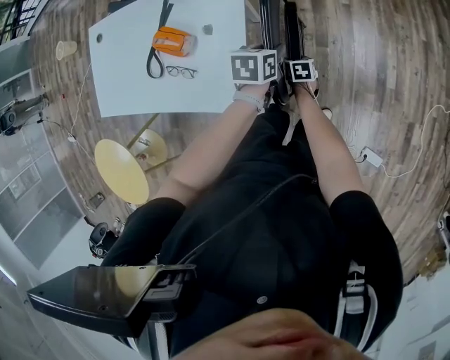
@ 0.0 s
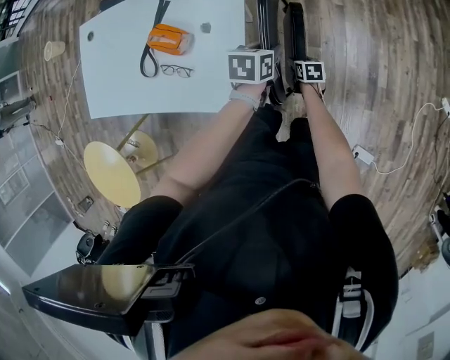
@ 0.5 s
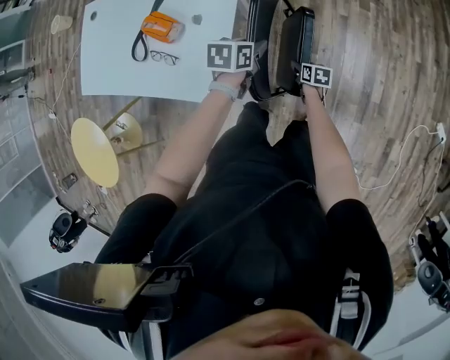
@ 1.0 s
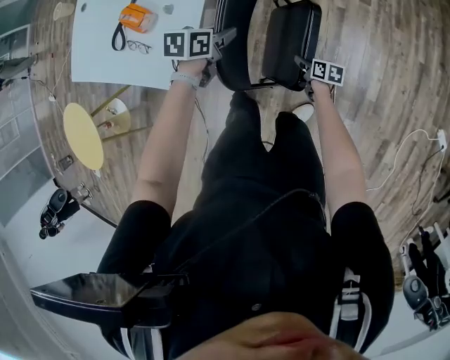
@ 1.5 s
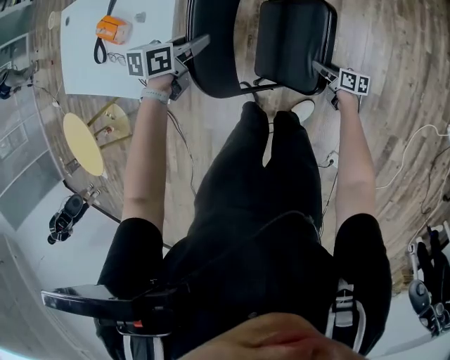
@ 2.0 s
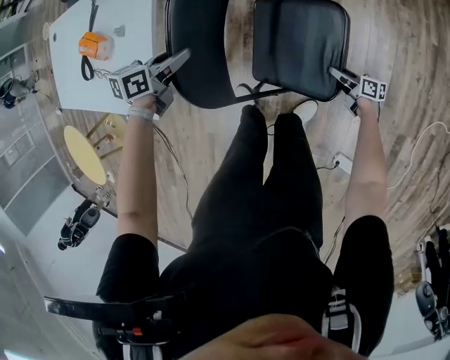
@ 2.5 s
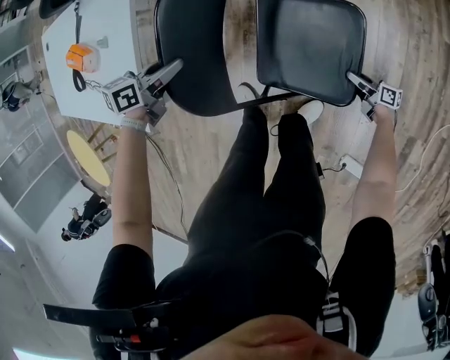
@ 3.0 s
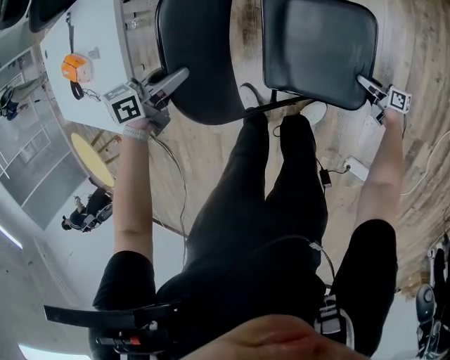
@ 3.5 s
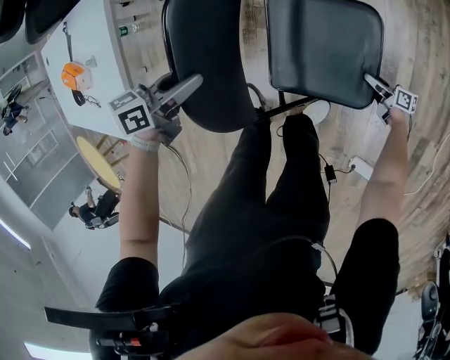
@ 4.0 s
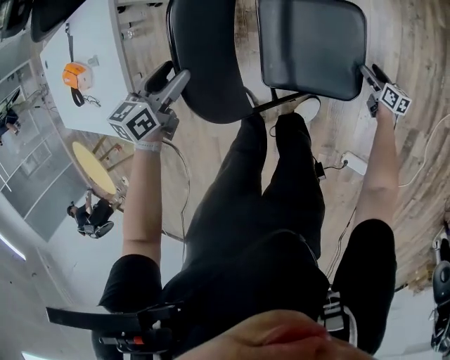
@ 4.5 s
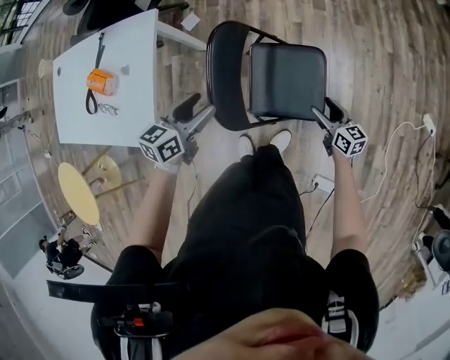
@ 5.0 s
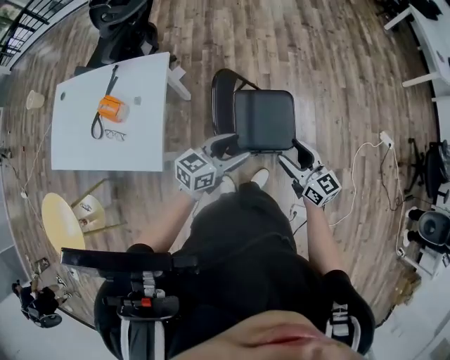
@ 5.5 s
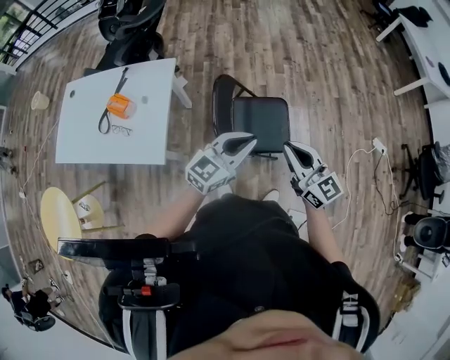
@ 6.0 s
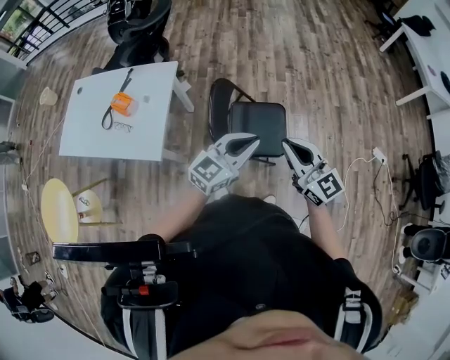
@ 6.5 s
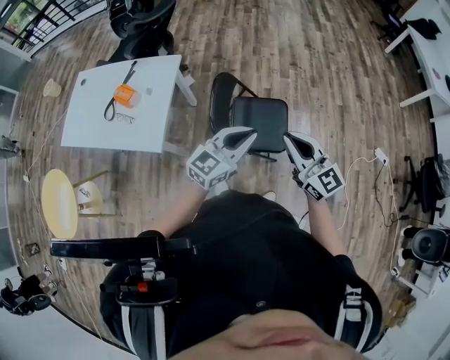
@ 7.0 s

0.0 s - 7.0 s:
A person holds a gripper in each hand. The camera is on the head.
0.0 s - 2.0 s: The left gripper shifts approximately 5 cm downward. Meanwhile the right gripper is displaced to the right by some 35 cm, and turns by about 30 degrees.
2.0 s - 3.5 s: The left gripper travels downward by approximately 10 cm. The right gripper heads downward and to the right, covering about 25 cm, and changes its angle by approximately 20 degrees.
3.5 s - 5.0 s: The left gripper goes roughly 15 cm upward, rotates about 20 degrees, and opens its fingers. The right gripper goes about 35 cm upward, and rolls counterclockwise, seen from behind, by about 40 degrees.
5.0 s - 7.0 s: The right gripper heads upward and backward, covering some 50 cm, turns by some 40 degrees, and closes up; the left gripper is displaced upward, to the right and backward by approximately 35 cm, turns by approximately 40 degrees, and closes.

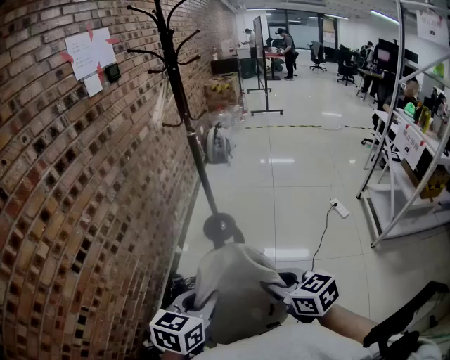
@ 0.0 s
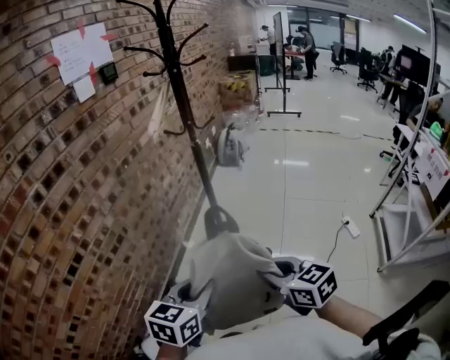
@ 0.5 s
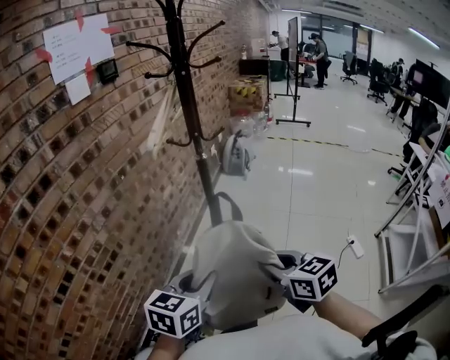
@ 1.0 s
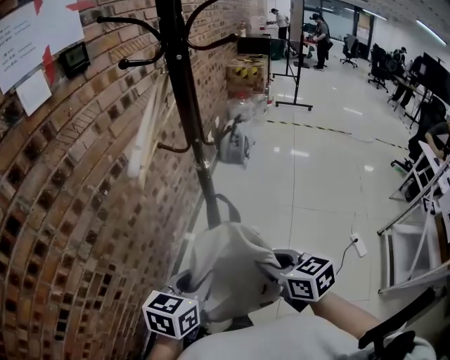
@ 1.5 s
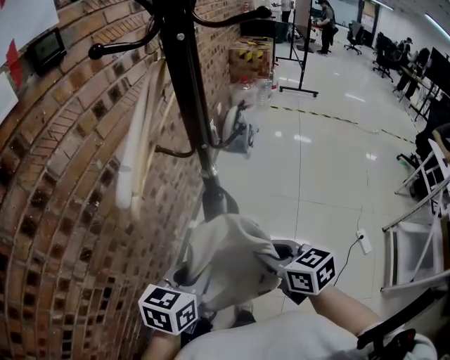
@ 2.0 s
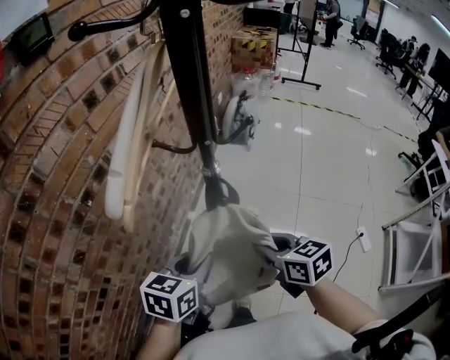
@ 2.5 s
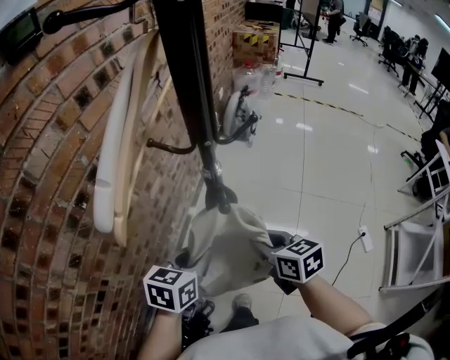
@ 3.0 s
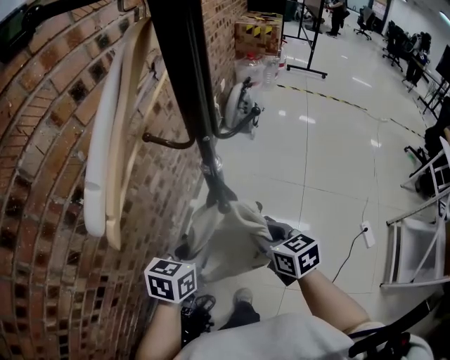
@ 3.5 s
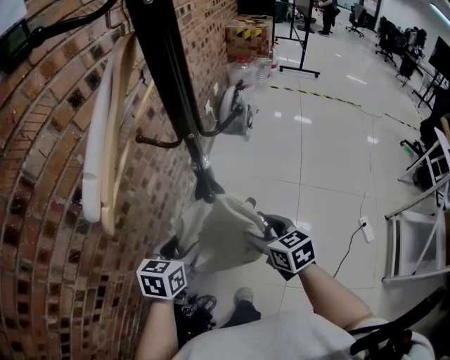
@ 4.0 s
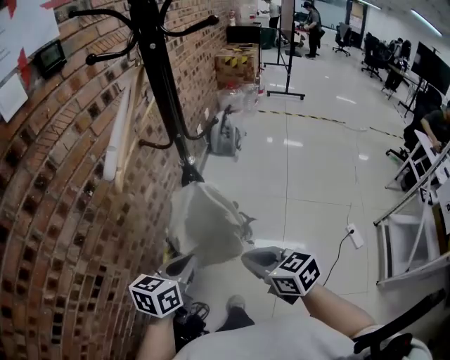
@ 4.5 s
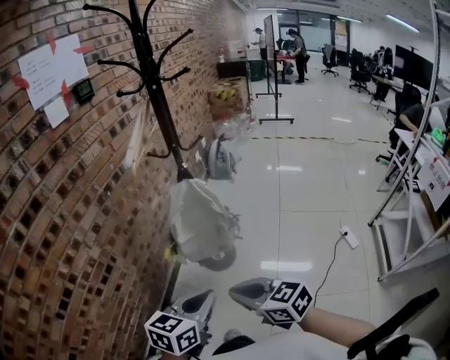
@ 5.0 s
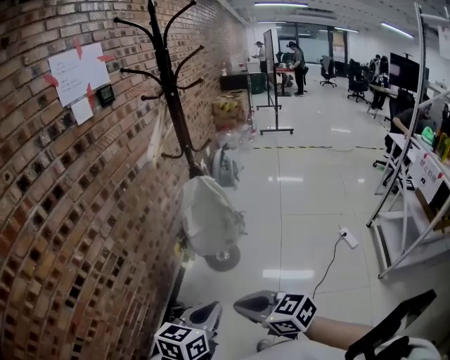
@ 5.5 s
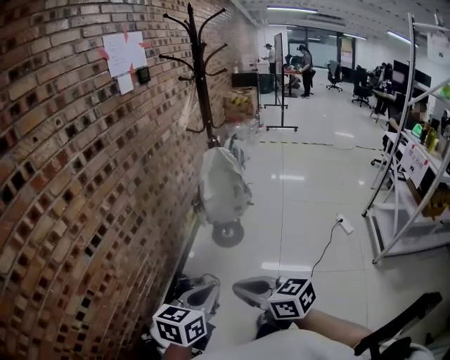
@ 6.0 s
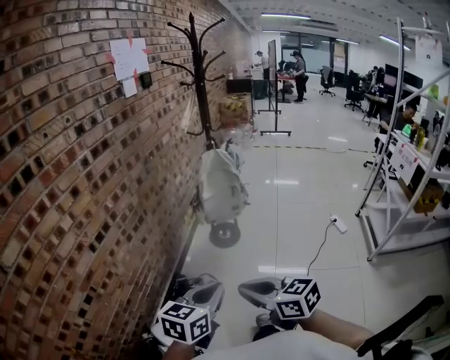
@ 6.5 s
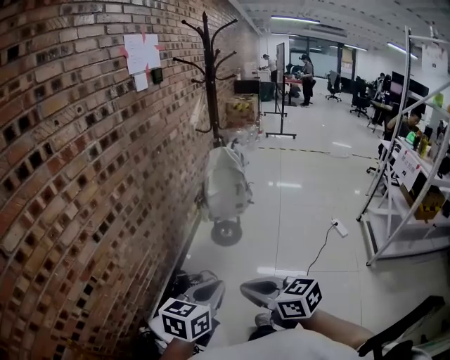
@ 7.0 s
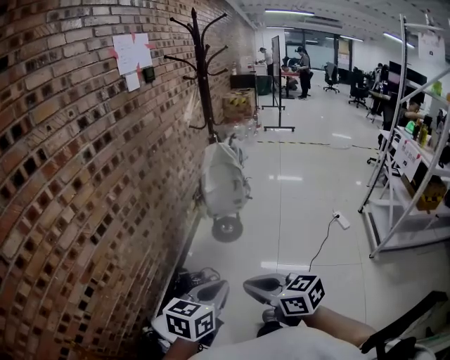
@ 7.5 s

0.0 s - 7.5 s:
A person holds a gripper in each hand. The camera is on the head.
0.0 s - 2.0 s: The pair of grippers is taken forward, about 60 cm.
2.0 s - 4.0 s: The grippers both shift downward and forward by some 15 cm. The right gripper opens, while the left gripper opens.
4.0 s - 5.5 s: The pair of grippers is taken backward, about 50 cm. The right gripper changes its angle by about 20 degrees, and closes up, while the left gripper closes its fingers.
5.5 s - 7.5 s: The two grippers go about 25 cm backward and to the left.

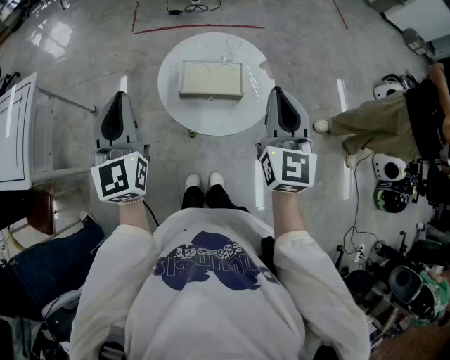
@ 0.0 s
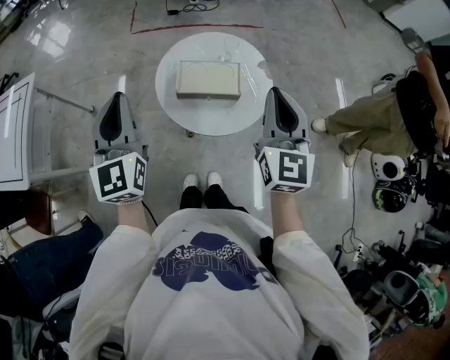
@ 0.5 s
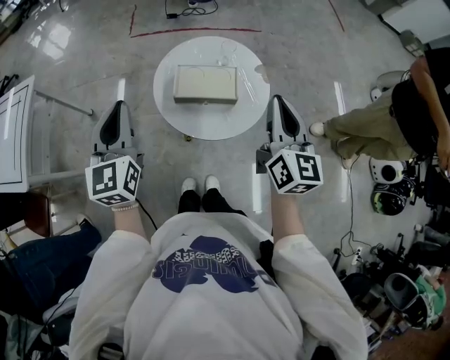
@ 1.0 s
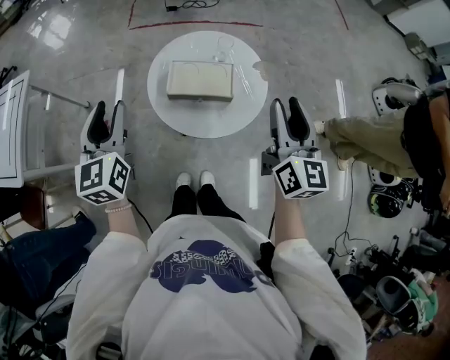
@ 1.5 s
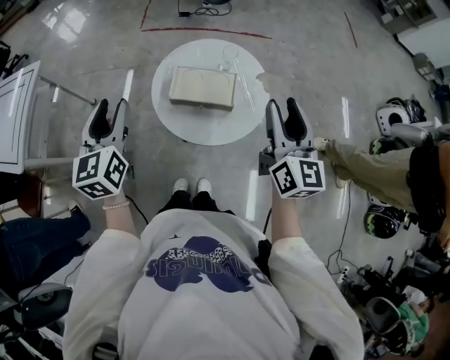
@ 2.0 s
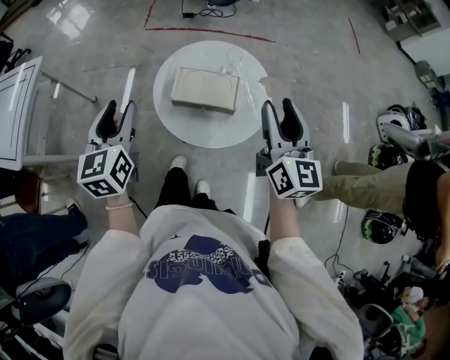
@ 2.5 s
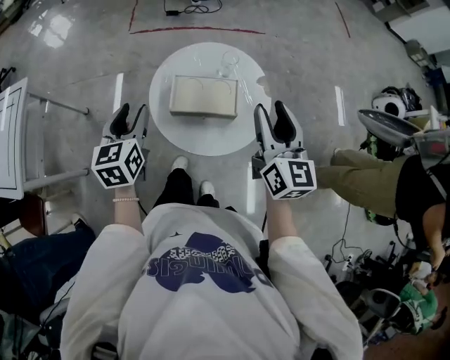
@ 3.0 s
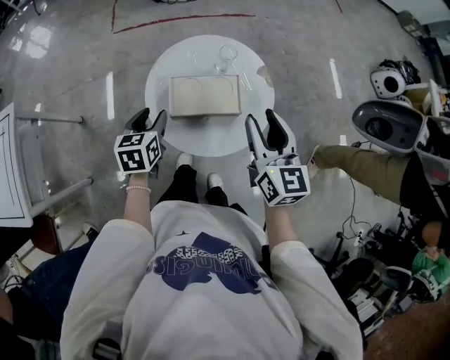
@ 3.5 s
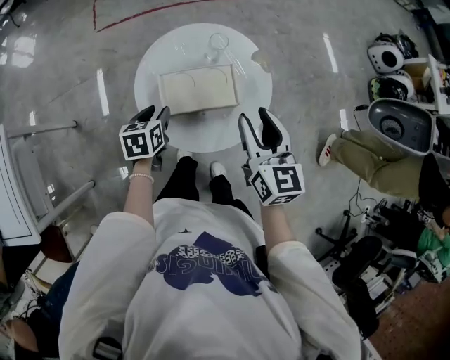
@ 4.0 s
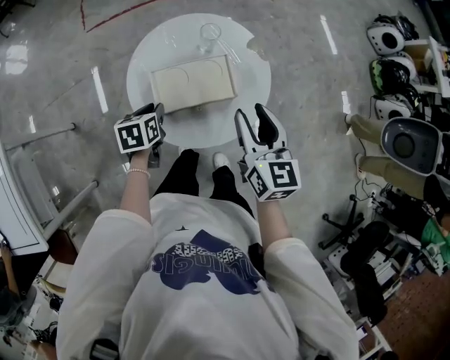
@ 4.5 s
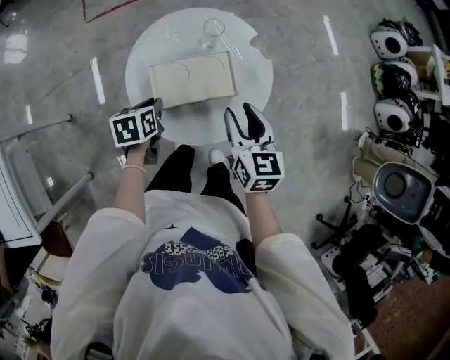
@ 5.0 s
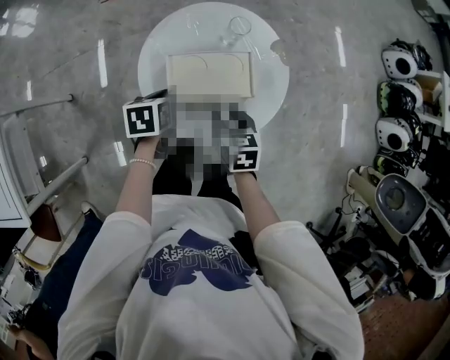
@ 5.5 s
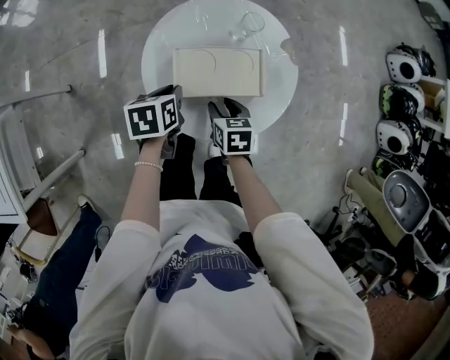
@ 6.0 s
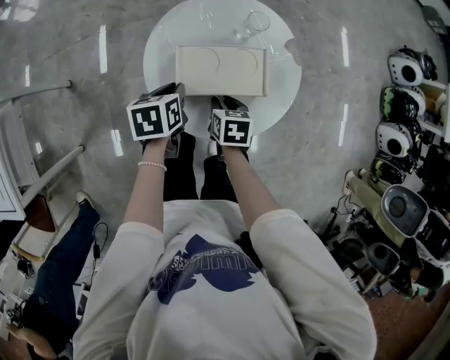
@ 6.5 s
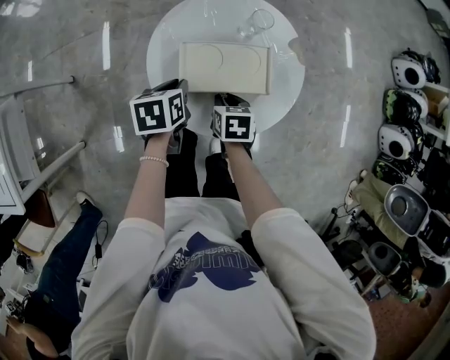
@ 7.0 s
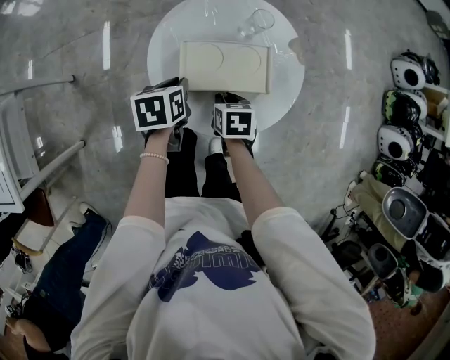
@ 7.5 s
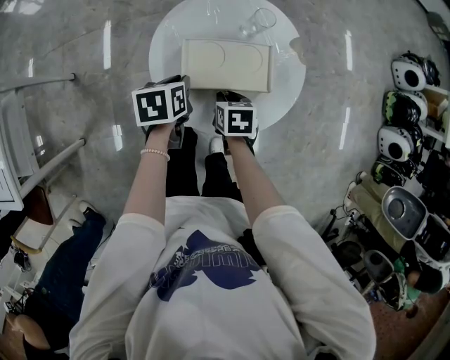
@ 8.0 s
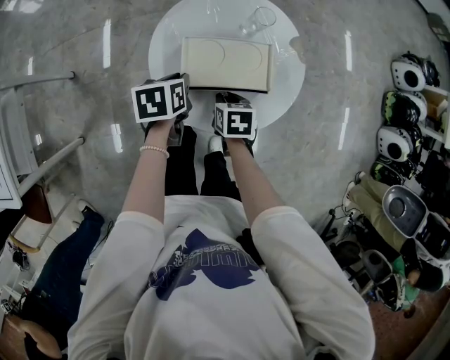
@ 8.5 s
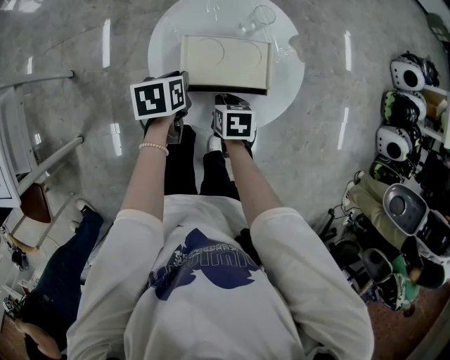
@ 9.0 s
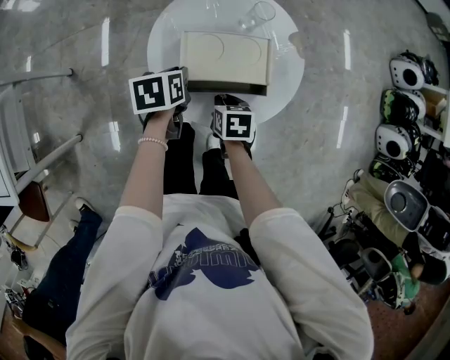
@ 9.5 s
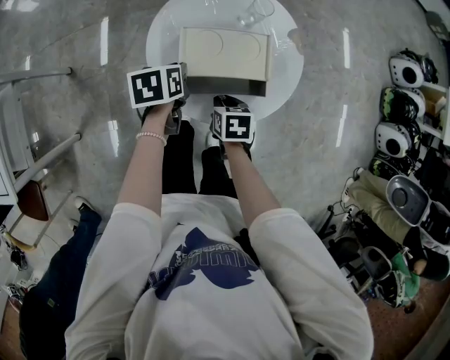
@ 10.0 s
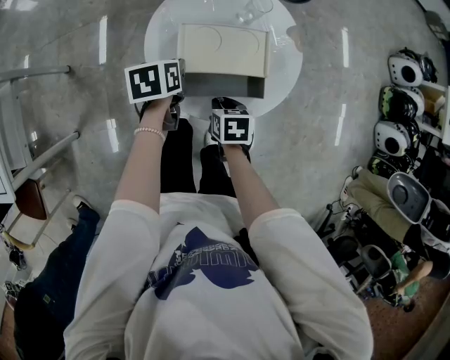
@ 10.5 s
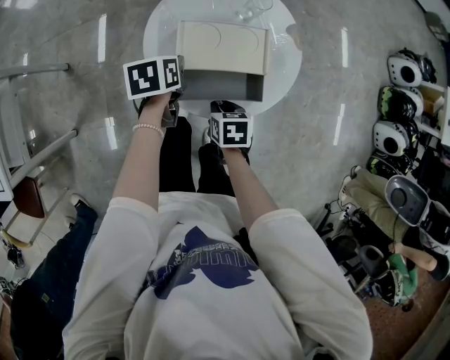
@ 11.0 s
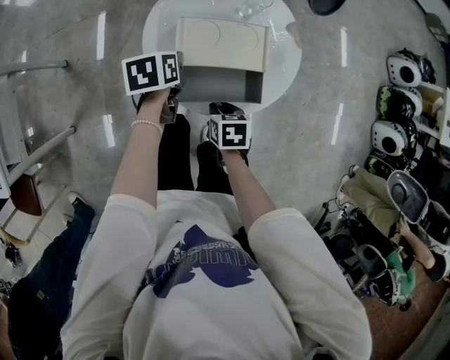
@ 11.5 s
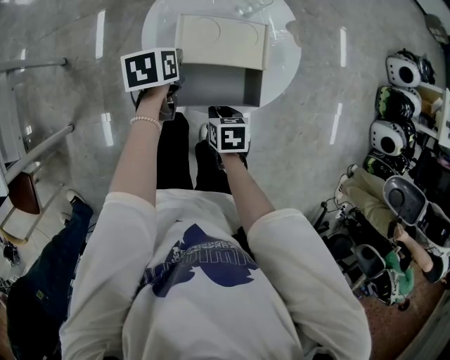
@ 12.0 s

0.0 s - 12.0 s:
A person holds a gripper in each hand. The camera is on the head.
0.0 s - 2.0 s: The left gripper shifts by about 5 cm, and opens its fingers; the right gripper goes some 10 cm to the right, turns by roughly 20 degrees, and opens up.
2.0 s - 4.0 s: The left gripper heads downward and forward, covering approximately 30 cm, and tips its fingers downward by roughly 40 degrees; the right gripper travels downward, to the left and forward by roughly 15 cm, and turns by approximately 20 degrees.
4.0 s - 6.0 s: The left gripper closes its fingers, while the right gripper travels downward by some 25 cm, and tilts its fingers about 40 degrees downward.
6.0 s - 8.0 s: The right gripper closes.
8.0 s - 10.0 s: The right gripper is displaced backward by some 5 cm.
10.0 s - 12.0 s: The right gripper shifts some 5 cm backward.
